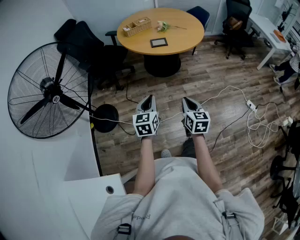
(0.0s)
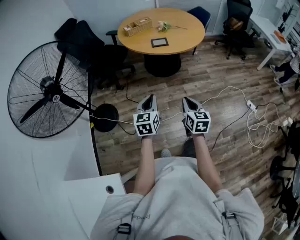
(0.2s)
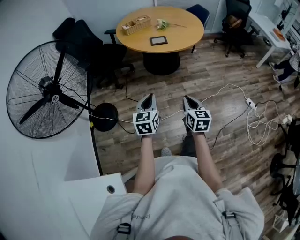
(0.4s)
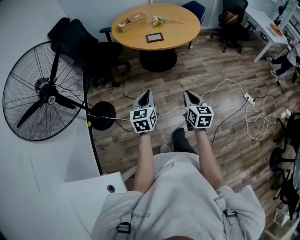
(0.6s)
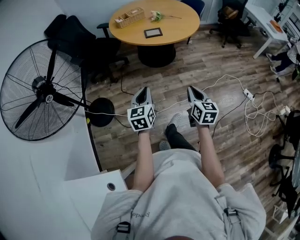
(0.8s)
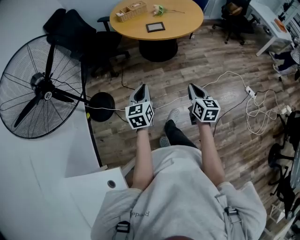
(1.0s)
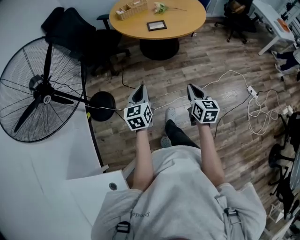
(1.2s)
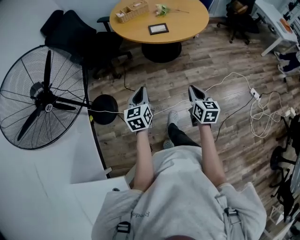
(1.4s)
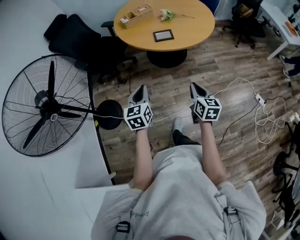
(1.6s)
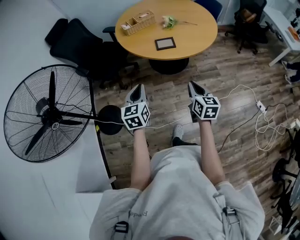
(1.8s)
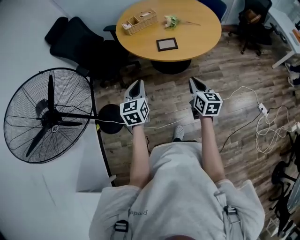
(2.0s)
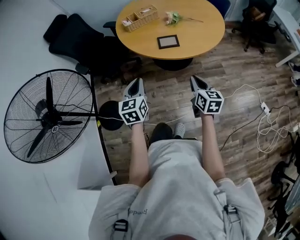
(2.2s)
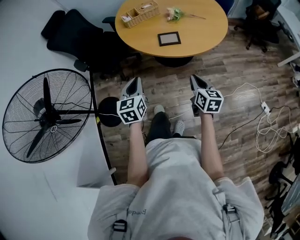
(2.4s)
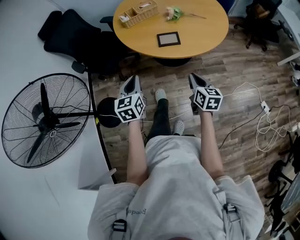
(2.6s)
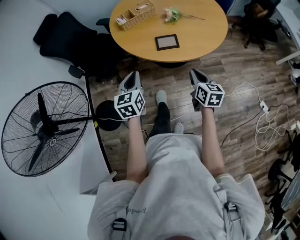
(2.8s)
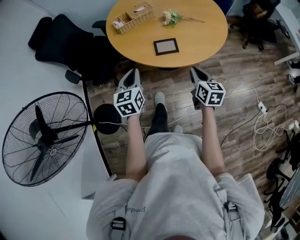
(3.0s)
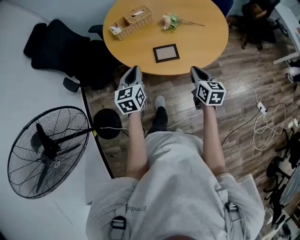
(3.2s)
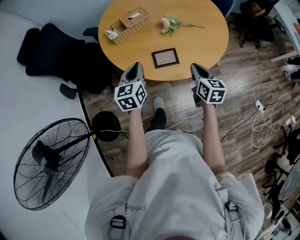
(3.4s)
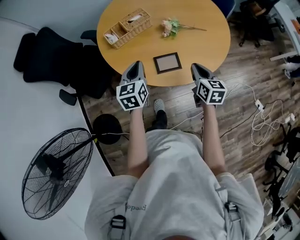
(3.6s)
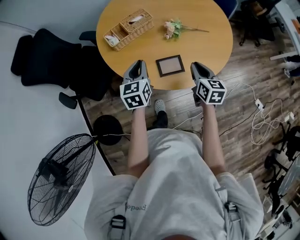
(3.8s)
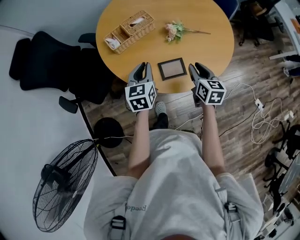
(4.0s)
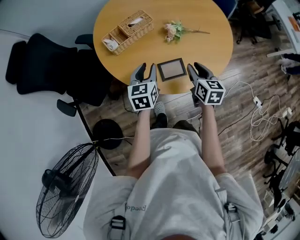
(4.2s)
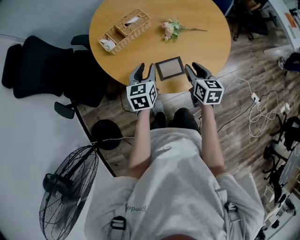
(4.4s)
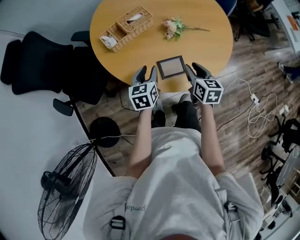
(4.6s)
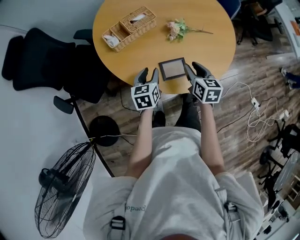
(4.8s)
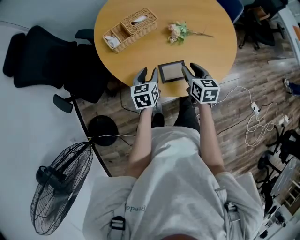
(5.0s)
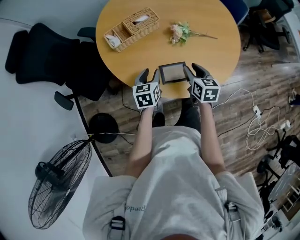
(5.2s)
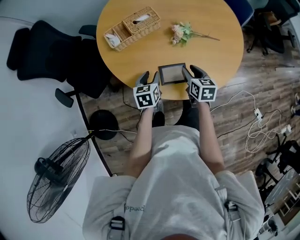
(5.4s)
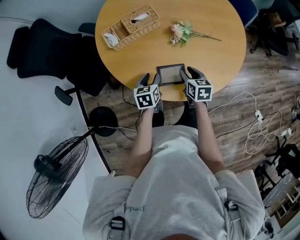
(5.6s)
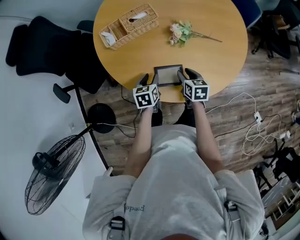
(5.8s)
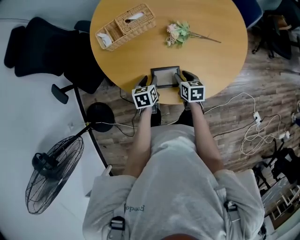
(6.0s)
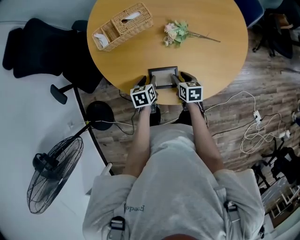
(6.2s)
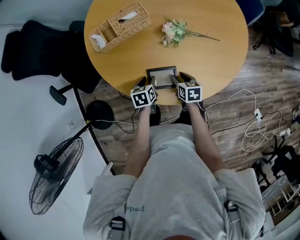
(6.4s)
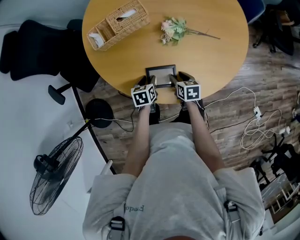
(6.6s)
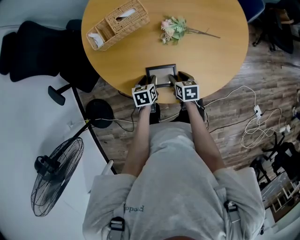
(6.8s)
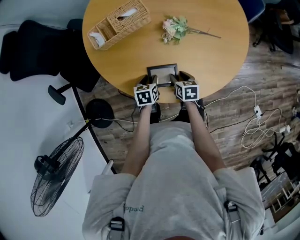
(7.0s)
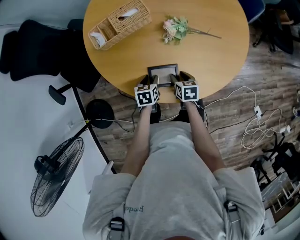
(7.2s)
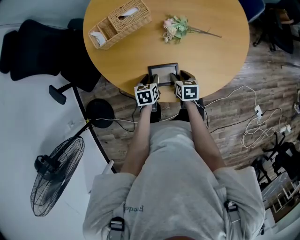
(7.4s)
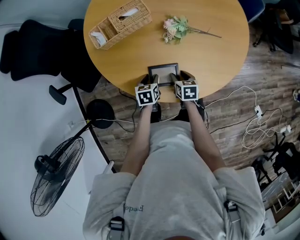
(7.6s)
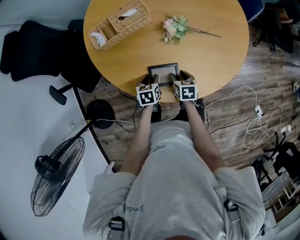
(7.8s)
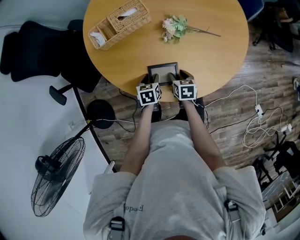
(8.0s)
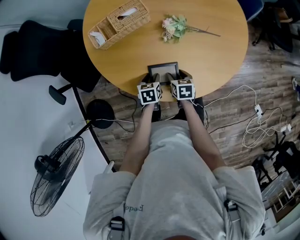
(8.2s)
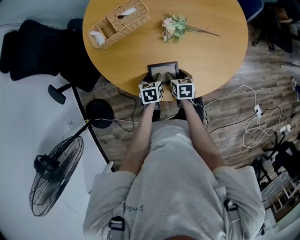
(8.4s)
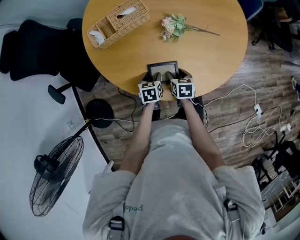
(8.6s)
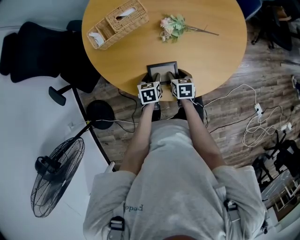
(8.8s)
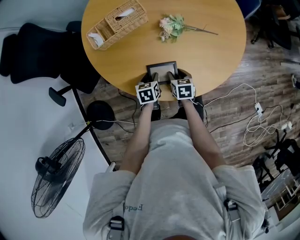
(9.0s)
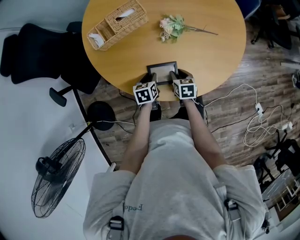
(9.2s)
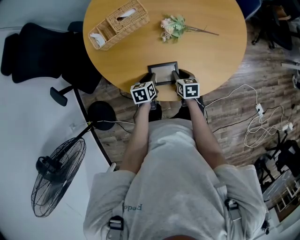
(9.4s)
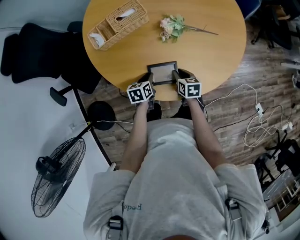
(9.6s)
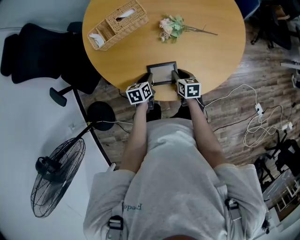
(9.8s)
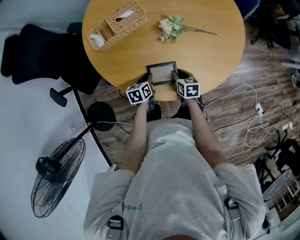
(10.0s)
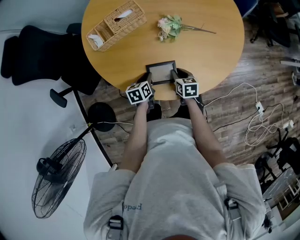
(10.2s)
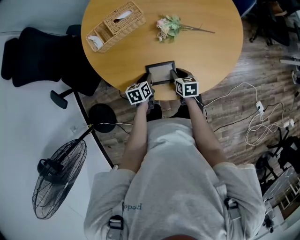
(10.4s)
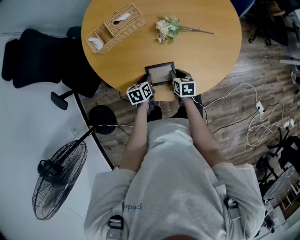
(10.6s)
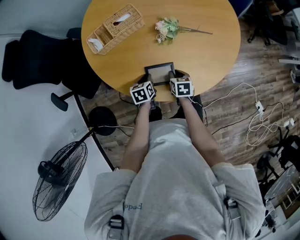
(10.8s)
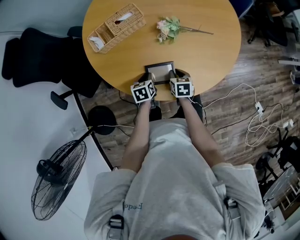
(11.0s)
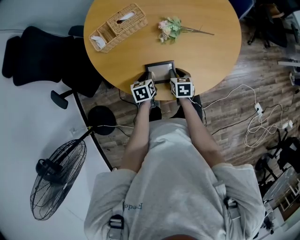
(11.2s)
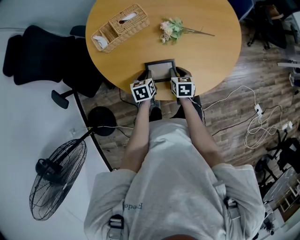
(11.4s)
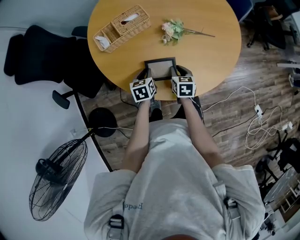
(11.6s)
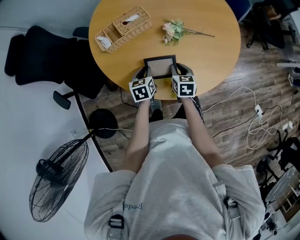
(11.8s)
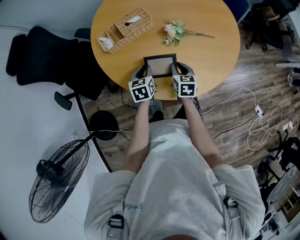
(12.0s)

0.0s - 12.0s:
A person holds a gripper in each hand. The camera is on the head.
0.0s - 1.6s: The grippers both shift forward by approximately 15 cm.
1.6s - 3.0s: Both grippers travel together forward, approximately 30 cm.
3.0s - 4.4s: The two grippers go approximately 20 cm forward. The left gripper opens up, while the right gripper opens up.
4.4s - 6.0s: The grippers both shift downward by approximately 15 cm. The right gripper swivels about 20 degrees. Meanwhile the left gripper changes its angle by about 30 degrees.
6.0s - 9.0s: The grippers move only a little.
9.0s - 10.4s: The left gripper closes, while the right gripper closes its fingers.
10.4s - 12.0s: The two grippers go some 10 cm upward.

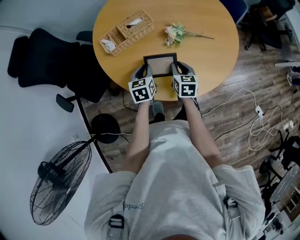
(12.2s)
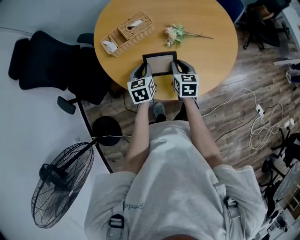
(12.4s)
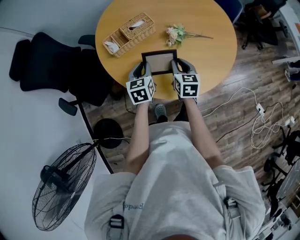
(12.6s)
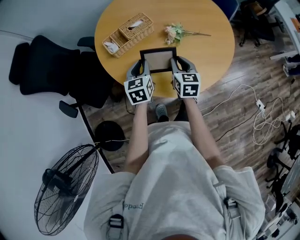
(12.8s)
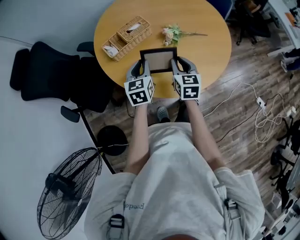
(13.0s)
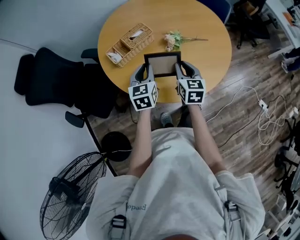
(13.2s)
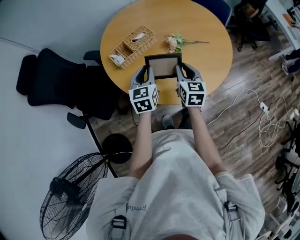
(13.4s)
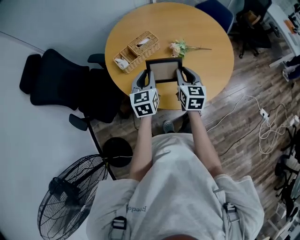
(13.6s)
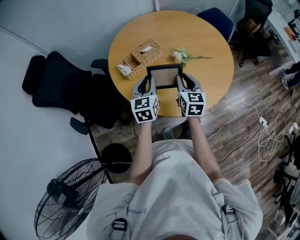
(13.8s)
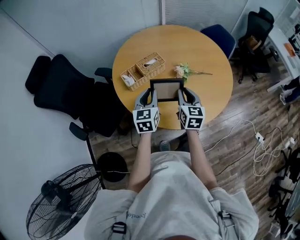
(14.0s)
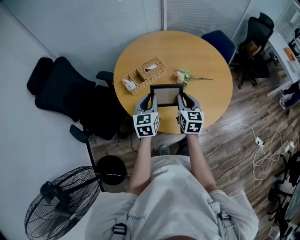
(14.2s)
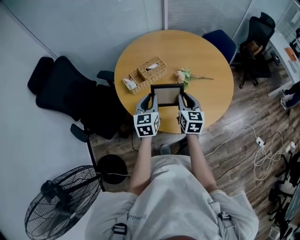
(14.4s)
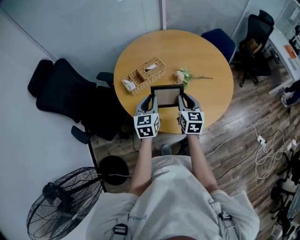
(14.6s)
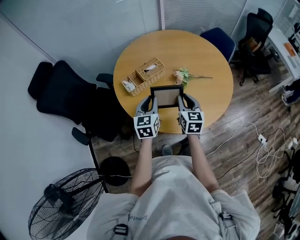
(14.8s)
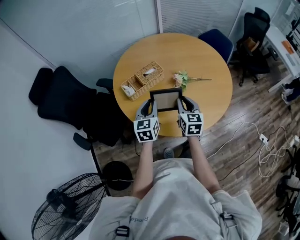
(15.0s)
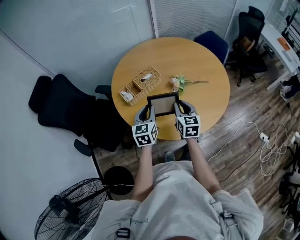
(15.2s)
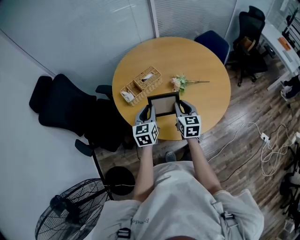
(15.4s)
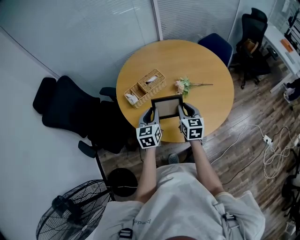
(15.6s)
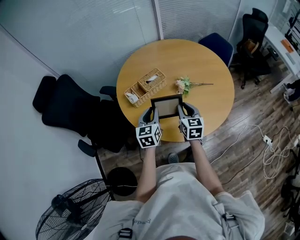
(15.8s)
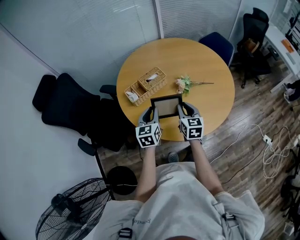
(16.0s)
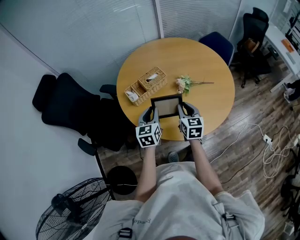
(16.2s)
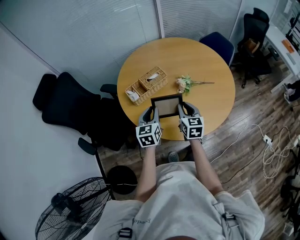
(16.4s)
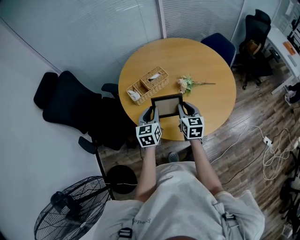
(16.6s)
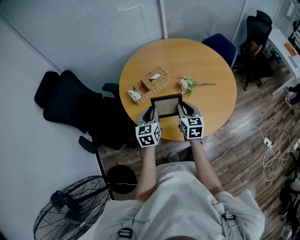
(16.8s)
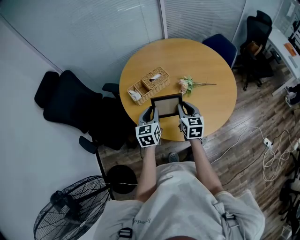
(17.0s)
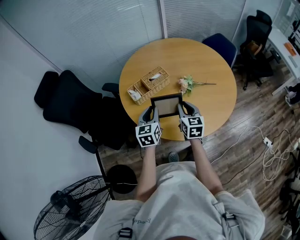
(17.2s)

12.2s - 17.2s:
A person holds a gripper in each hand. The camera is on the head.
12.2s - 13.8s: Both grippers move upward, approximately 15 cm. The left gripper turns by roughly 20 degrees, while the right gripper changes its angle by roughly 20 degrees.
13.8s - 17.2s: The grippers move only a little.

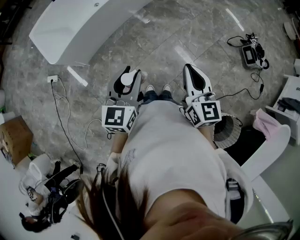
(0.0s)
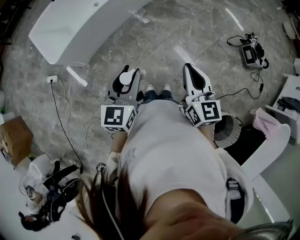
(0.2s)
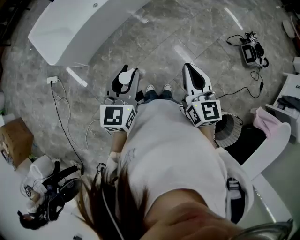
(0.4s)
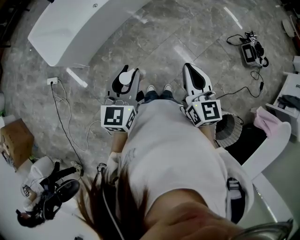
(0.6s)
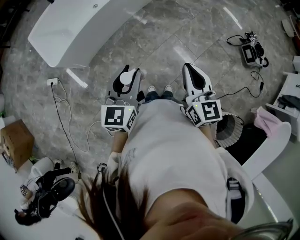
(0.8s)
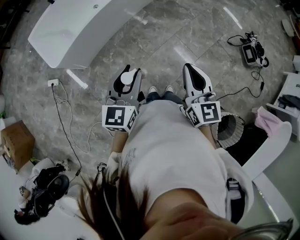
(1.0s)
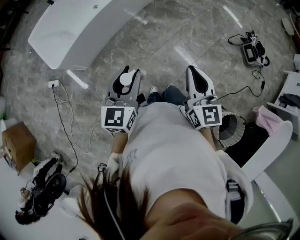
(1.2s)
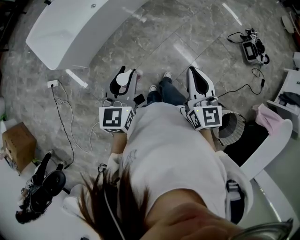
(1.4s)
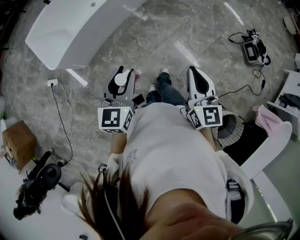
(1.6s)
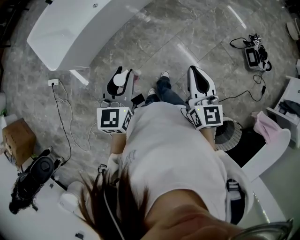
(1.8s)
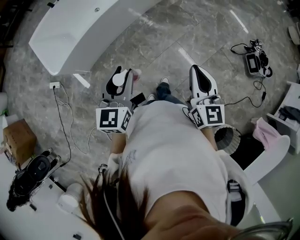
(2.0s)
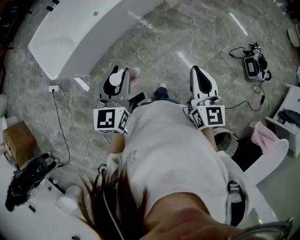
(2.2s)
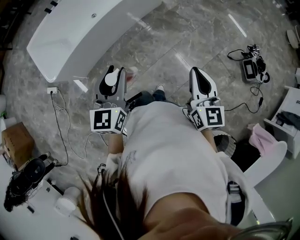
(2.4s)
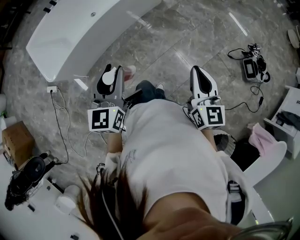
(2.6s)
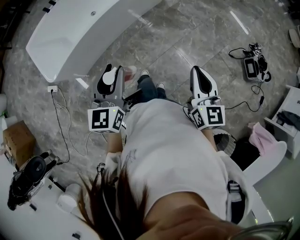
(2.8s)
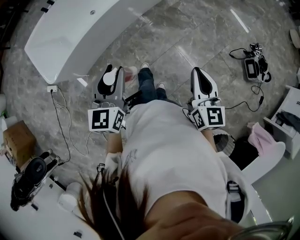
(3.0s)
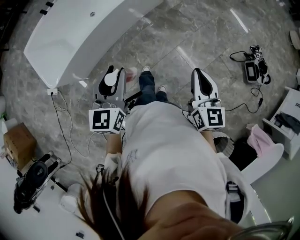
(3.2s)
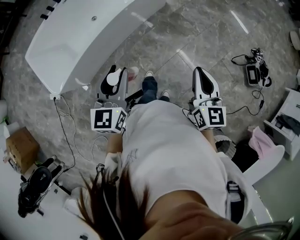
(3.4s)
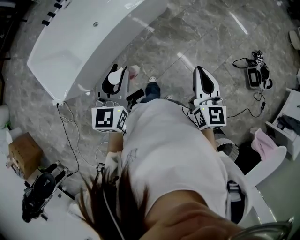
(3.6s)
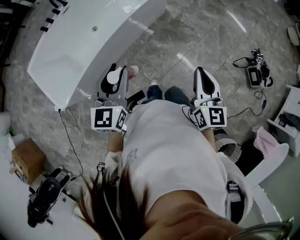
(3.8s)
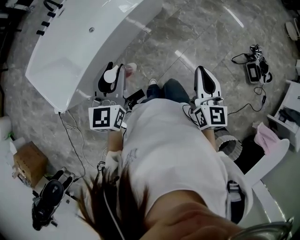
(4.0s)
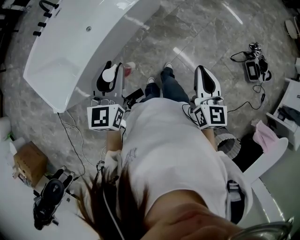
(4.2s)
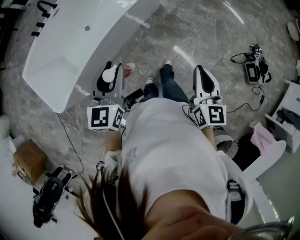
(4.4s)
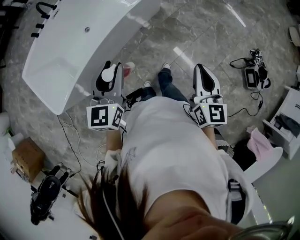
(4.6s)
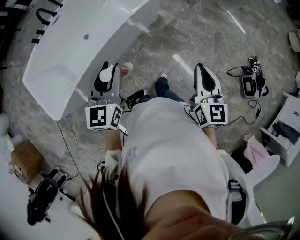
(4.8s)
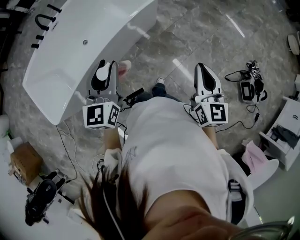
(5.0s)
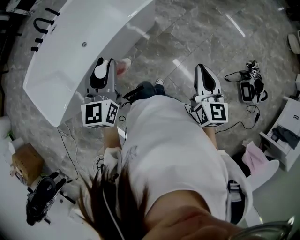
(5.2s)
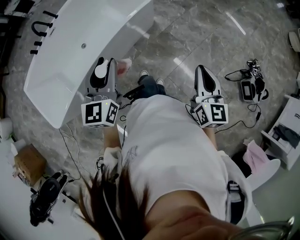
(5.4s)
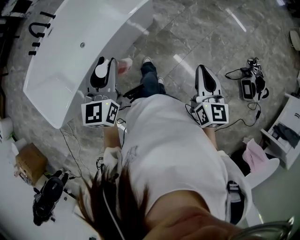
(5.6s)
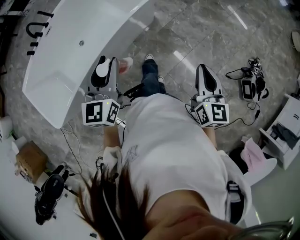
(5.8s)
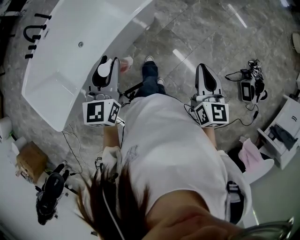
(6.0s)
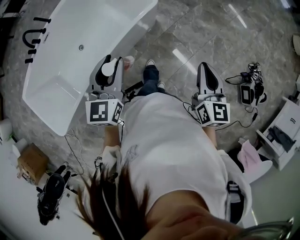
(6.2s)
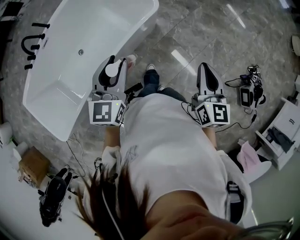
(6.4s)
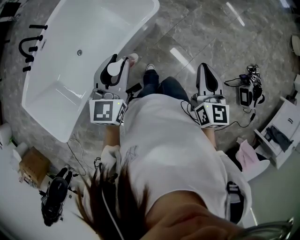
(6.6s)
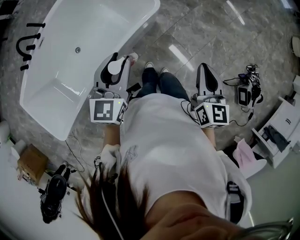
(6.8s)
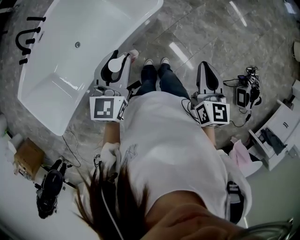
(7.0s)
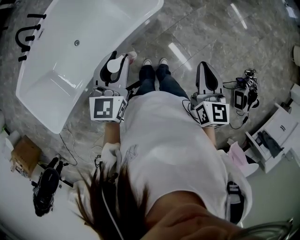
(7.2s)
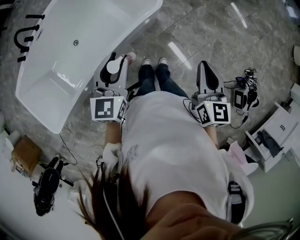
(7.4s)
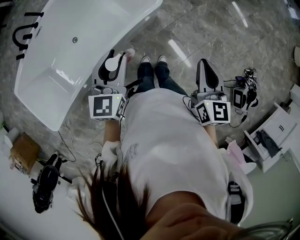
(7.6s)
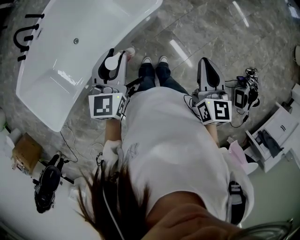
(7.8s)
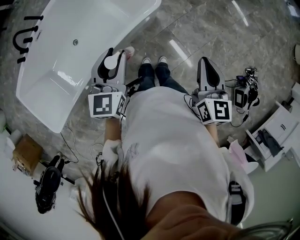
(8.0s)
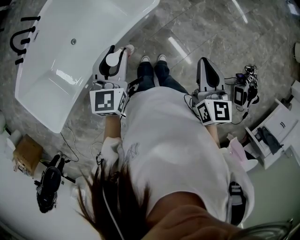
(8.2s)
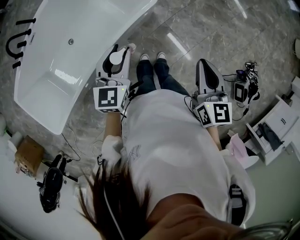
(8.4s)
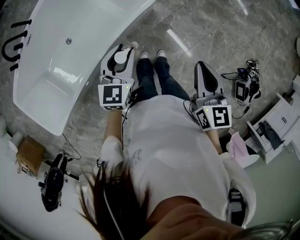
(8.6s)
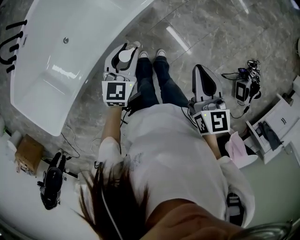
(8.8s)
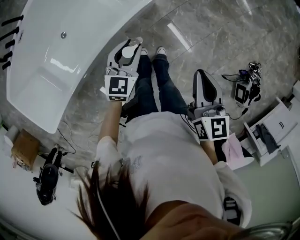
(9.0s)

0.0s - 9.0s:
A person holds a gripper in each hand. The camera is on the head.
0.0s - 1.6s: The left gripper travels to the left by some 5 cm.
1.6s - 3.0s: The left gripper goes some 15 cm forward; the right gripper is displaced forward and to the right by roughly 20 cm.
3.0s - 4.4s: Both grippers move forward, approximately 20 cm.
4.4s - 6.0s: The left gripper goes roughly 30 cm forward. The right gripper shifts some 30 cm forward and to the right.
6.0s - 7.6s: The two grippers go roughly 15 cm forward.
7.6s - 9.0s: The right gripper heads downward, covering approximately 10 cm. The left gripper travels downward by approximately 20 cm.
